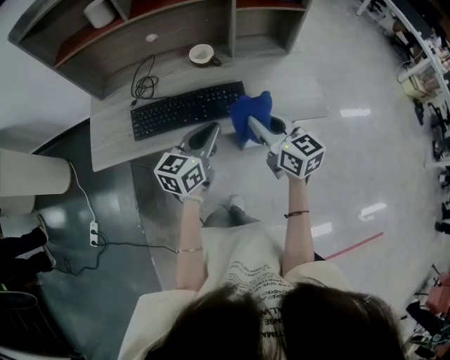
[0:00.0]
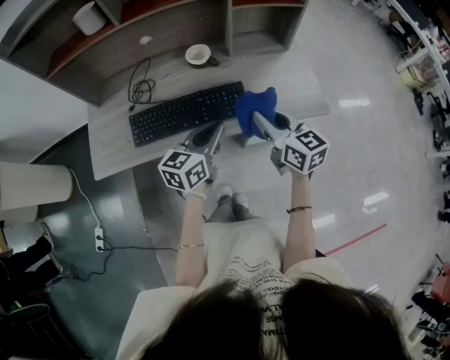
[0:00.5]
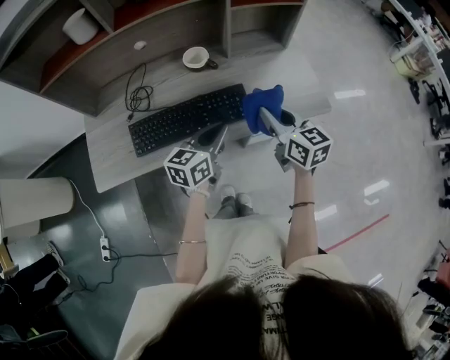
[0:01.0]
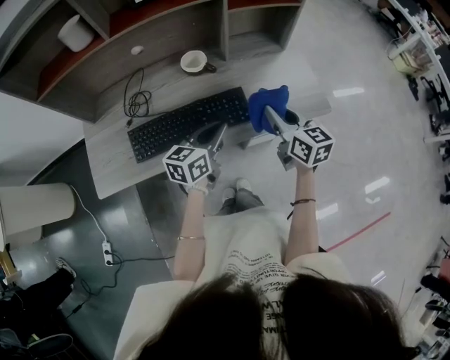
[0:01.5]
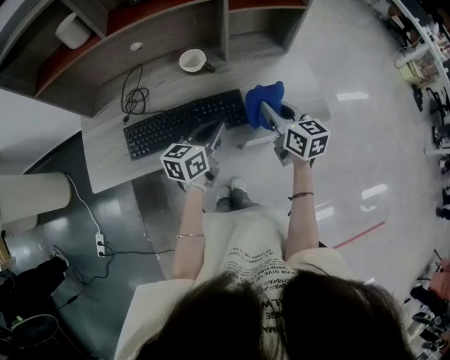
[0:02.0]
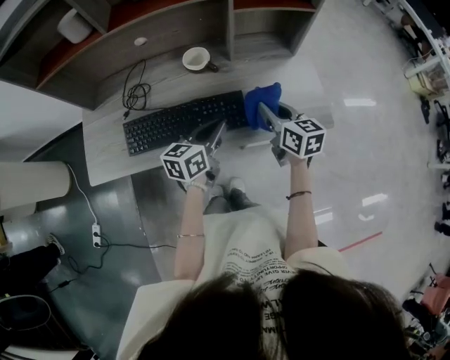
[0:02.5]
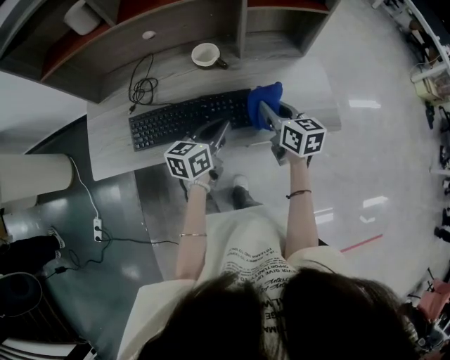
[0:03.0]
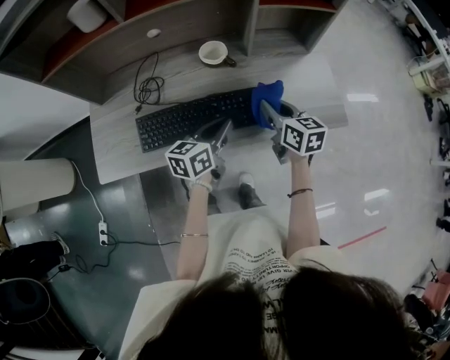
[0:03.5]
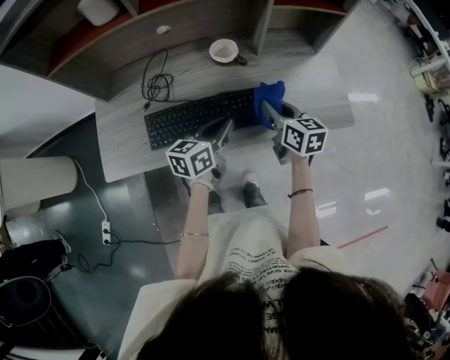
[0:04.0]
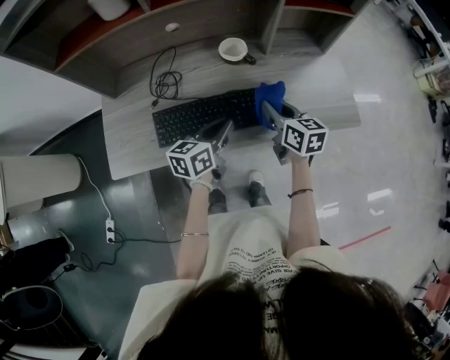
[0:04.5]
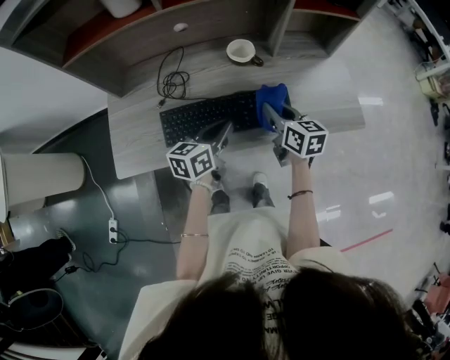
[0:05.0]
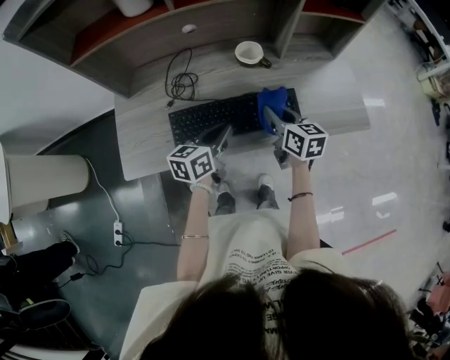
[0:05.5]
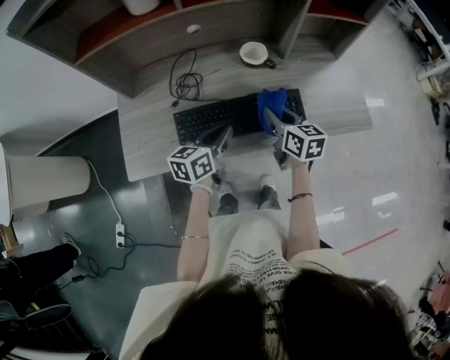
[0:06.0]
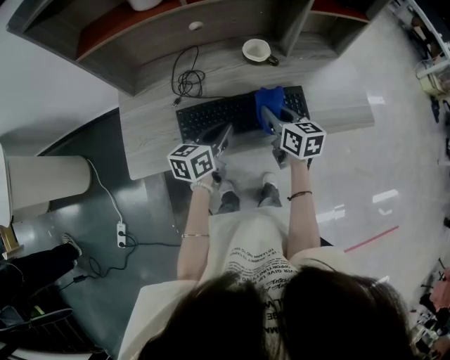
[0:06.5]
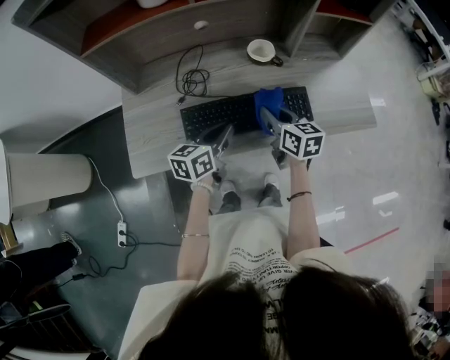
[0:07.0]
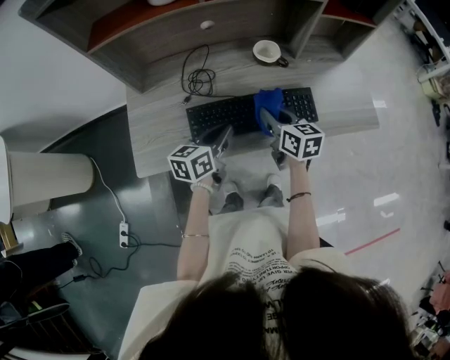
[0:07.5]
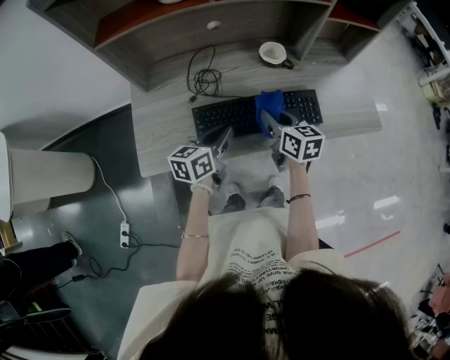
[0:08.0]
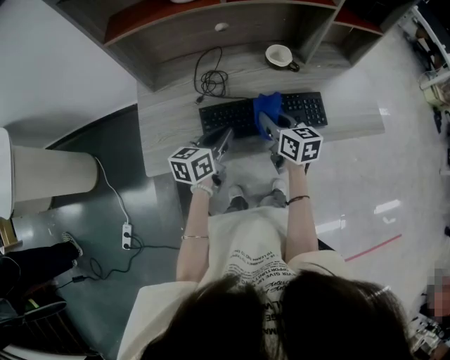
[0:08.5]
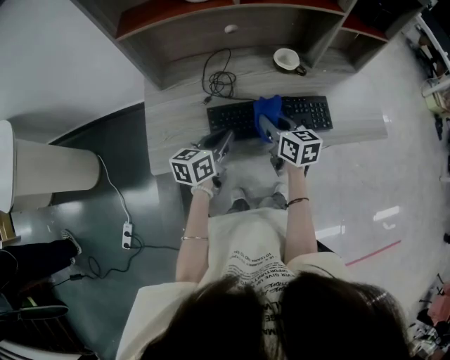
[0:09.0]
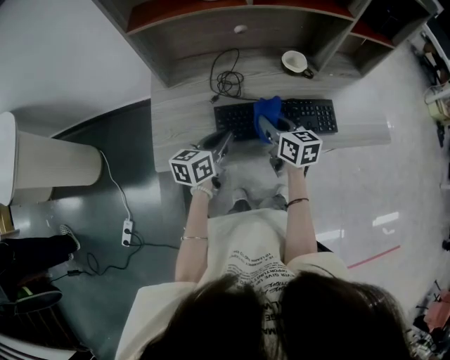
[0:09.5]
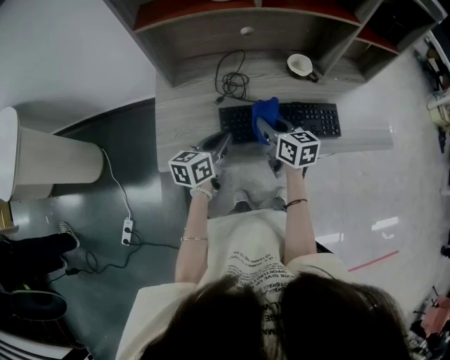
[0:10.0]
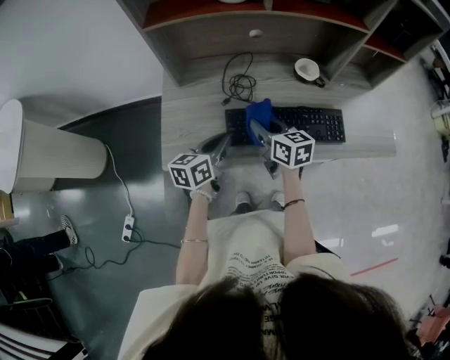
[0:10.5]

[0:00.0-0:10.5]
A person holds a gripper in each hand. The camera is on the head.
0:00.0 to 0:02.0: The right gripper goes roughly 10 cm forward, while the left gripper heads forward and downward, covering roughly 10 cm.
0:02.0 to 0:04.0: The grippers both shift to the left by about 10 cm.
0:04.0 to 0:06.5: Both grippers move to the left, approximately 10 cm.
0:06.5 to 0:08.5: Both grippers move to the left, some 5 cm.
0:08.5 to 0:10.5: Both grippers move to the left, approximately 10 cm.

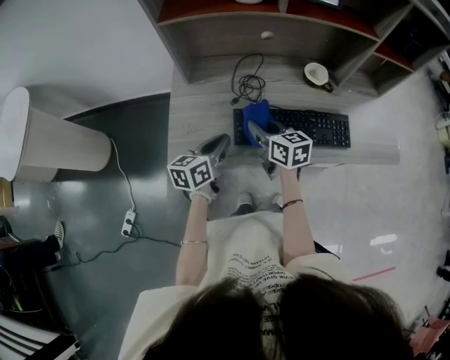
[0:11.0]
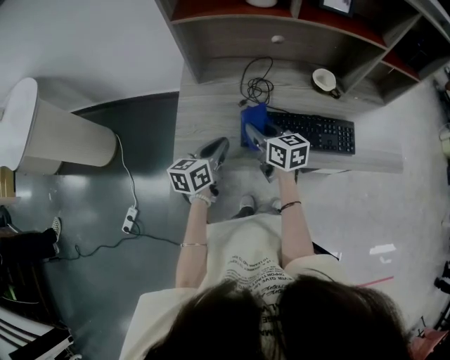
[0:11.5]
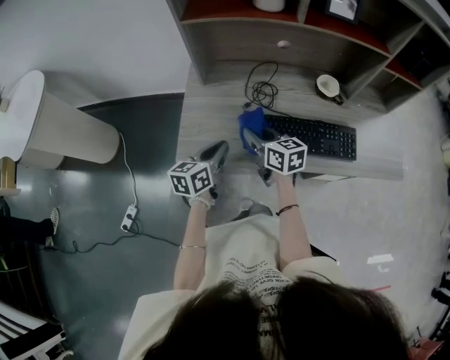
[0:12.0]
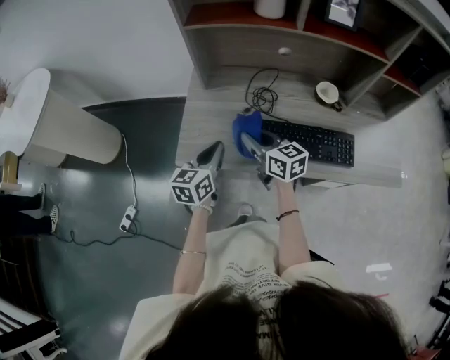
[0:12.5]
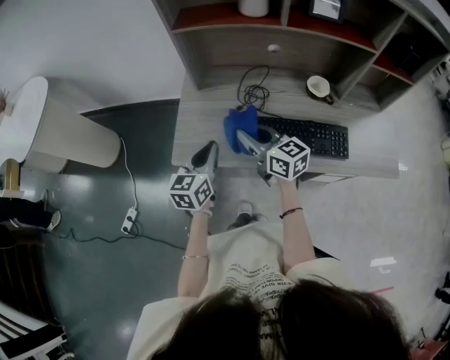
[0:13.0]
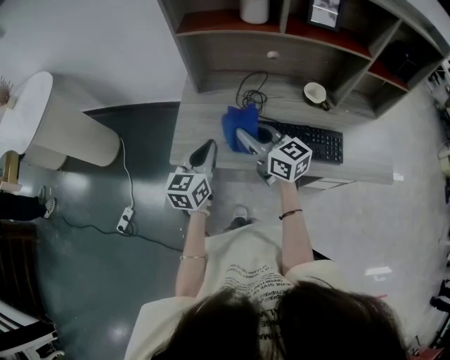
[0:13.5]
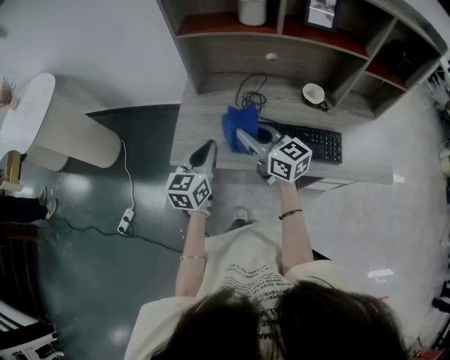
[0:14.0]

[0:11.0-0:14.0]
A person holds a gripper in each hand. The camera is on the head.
0:11.0 to 0:12.5: The right gripper heads to the left, covering about 5 cm; the left gripper changes place by some 5 cm.
0:12.5 to 0:14.0: The left gripper travels upward by about 5 cm. Meanwhile the right gripper is displaced upward by roughly 10 cm.

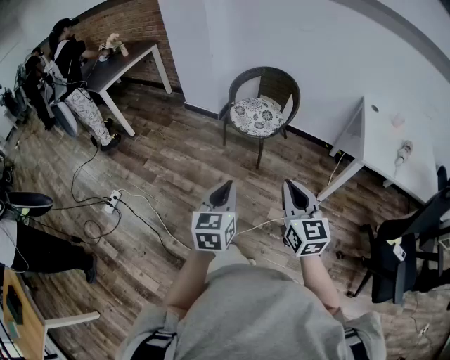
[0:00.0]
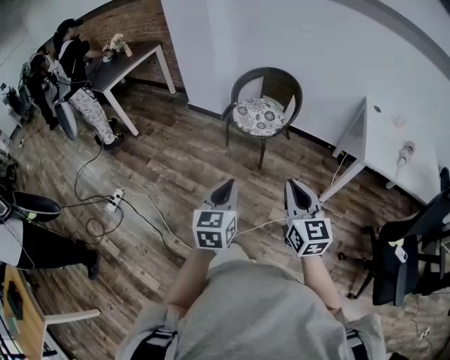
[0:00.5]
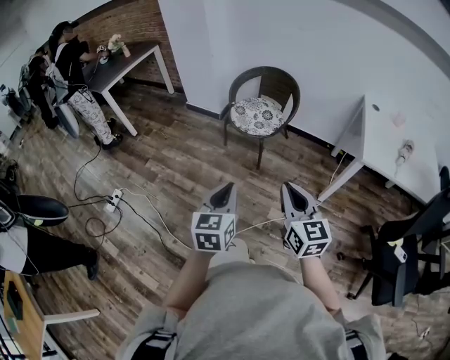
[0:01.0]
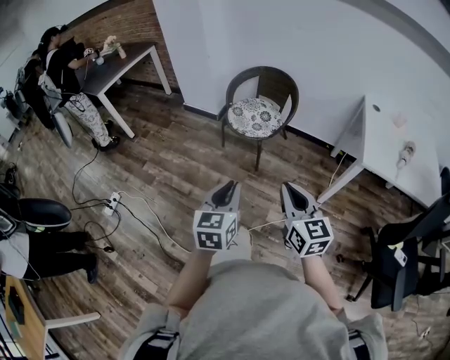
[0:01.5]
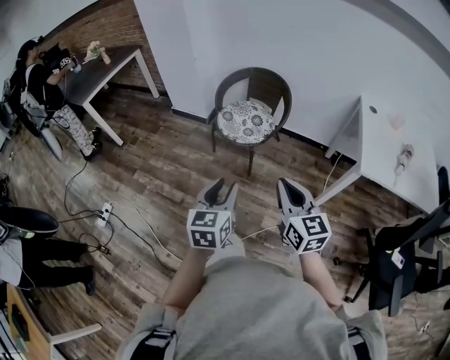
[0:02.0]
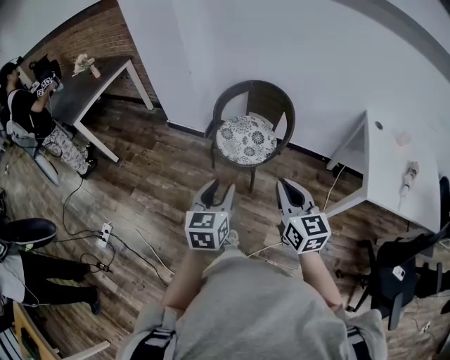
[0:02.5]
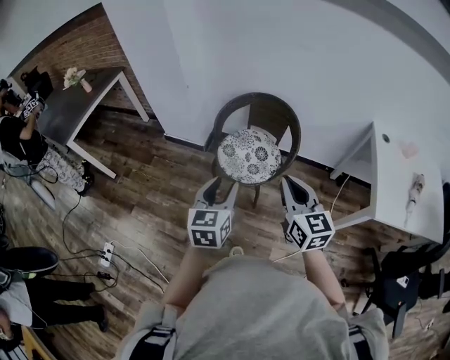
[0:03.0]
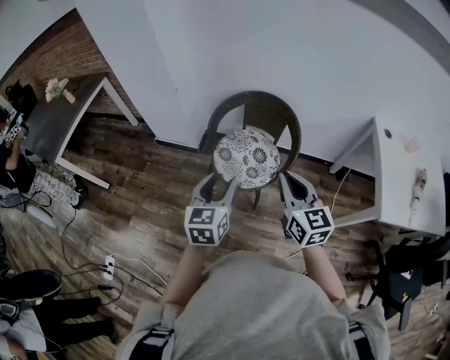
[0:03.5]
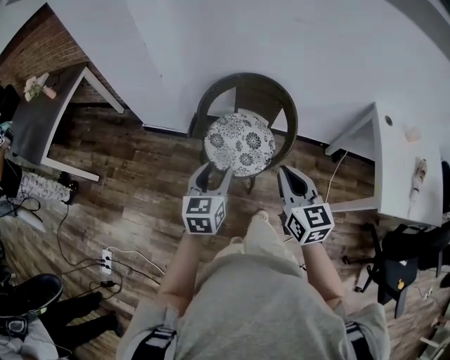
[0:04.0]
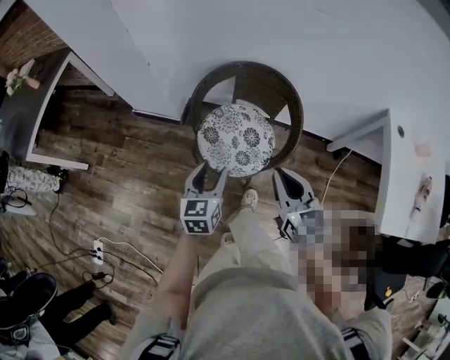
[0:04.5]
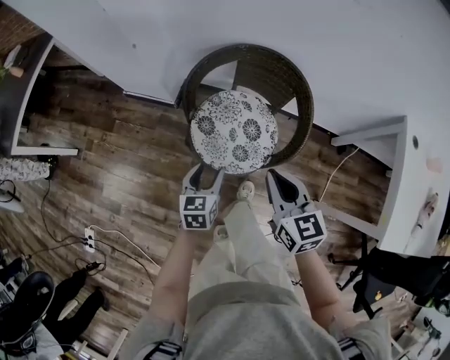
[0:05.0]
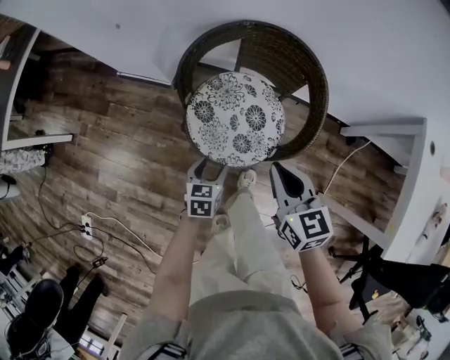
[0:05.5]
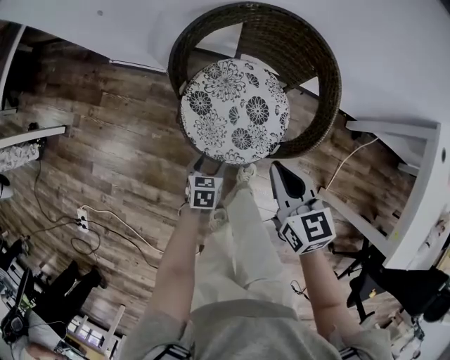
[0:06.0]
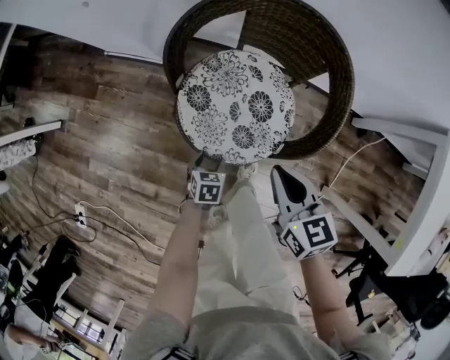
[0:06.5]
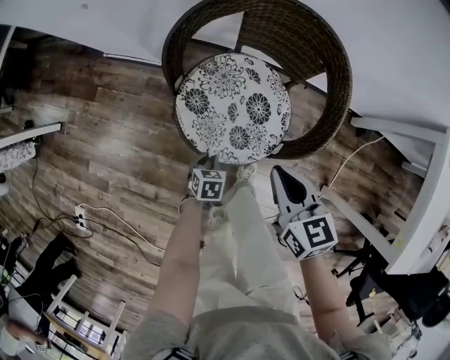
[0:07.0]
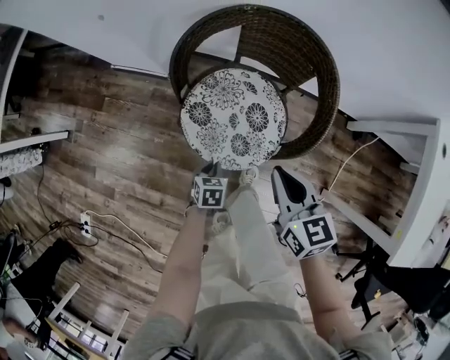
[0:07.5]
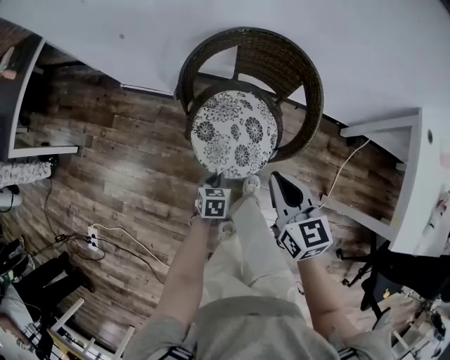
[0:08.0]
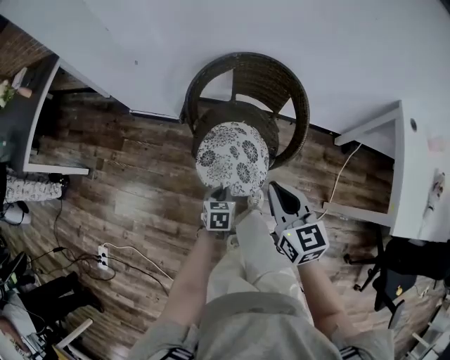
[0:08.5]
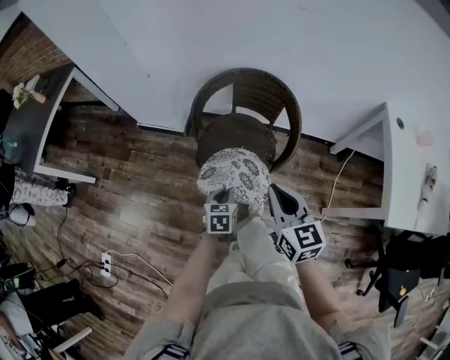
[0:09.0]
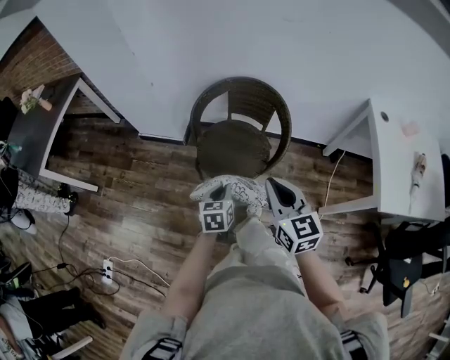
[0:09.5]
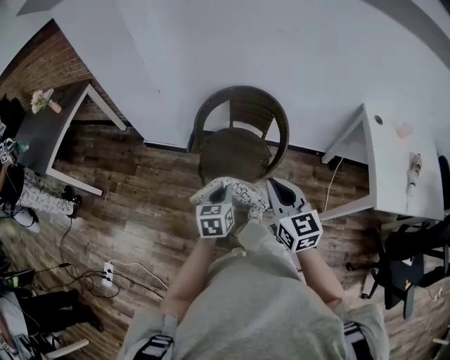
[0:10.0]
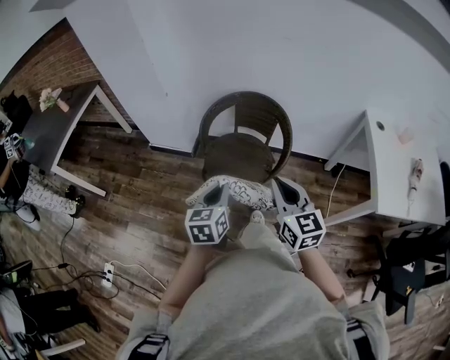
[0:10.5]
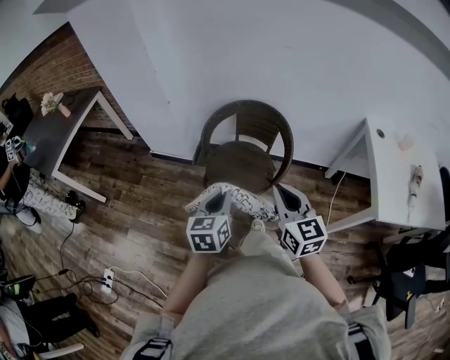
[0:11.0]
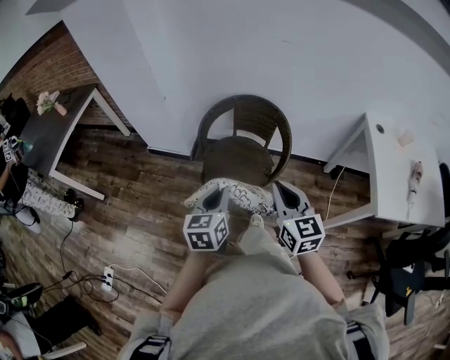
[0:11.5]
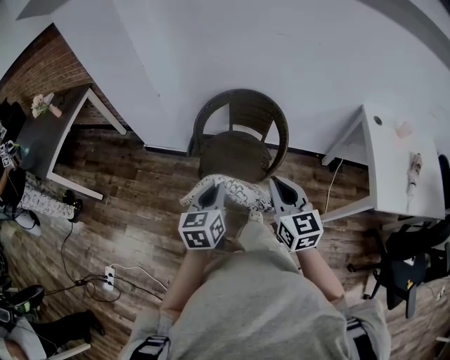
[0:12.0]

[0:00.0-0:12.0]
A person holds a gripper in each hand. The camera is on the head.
0:00.0 to 0:02.0: The right gripper goes about 10 cm forward, while the left gripper is displaced forward and to the right by some 15 cm, and opens its fingers.
0:02.0 to 0:04.0: The grippers both shift forward by about 40 cm.
0:04.0 to 0:06.0: The left gripper is displaced downward by some 40 cm, and tips its fingers downward by roughly 40 degrees. Meanwhile the right gripper is displaced downward and forward by some 30 cm, and turns by approximately 20 degrees.
0:06.0 to 0:08.0: The two grippers go roughly 5 cm upward. The left gripper closes.
0:08.0 to 0:10.0: The left gripper is displaced upward by some 30 cm, and rotates about 30 degrees, while the right gripper shifts roughly 25 cm upward and backward.
0:10.0 to 0:12.0: The left gripper is displaced upward by roughly 10 cm.

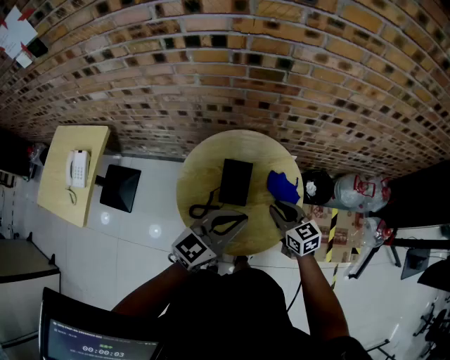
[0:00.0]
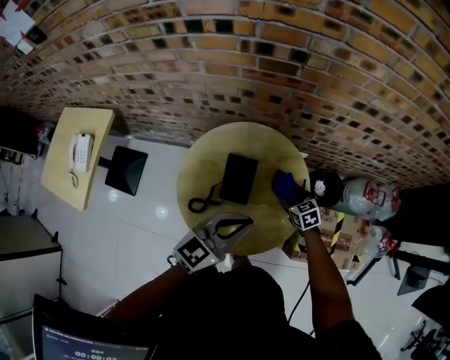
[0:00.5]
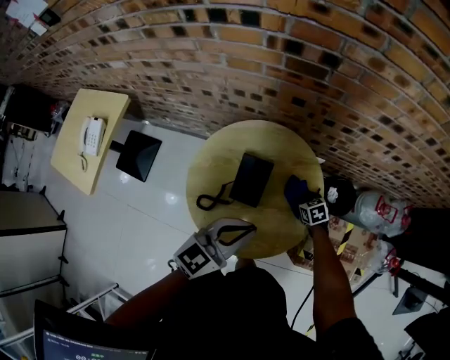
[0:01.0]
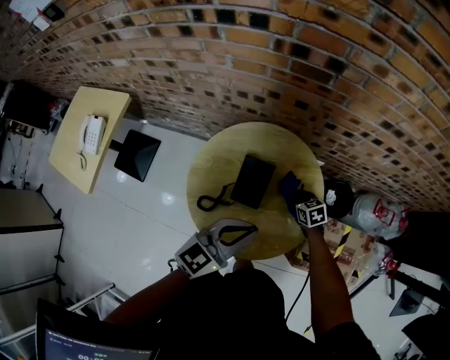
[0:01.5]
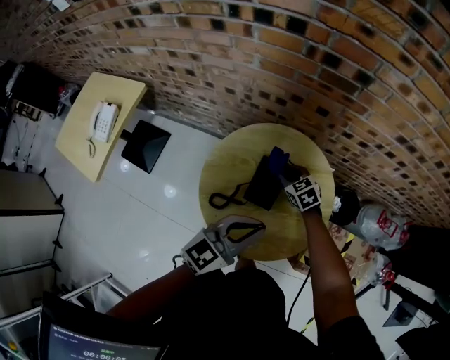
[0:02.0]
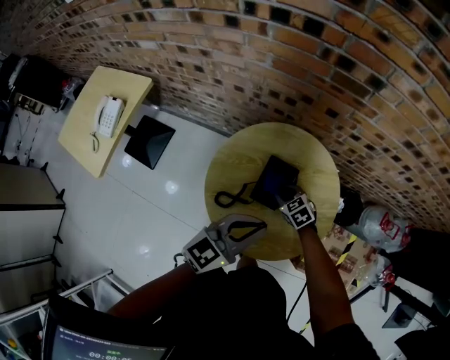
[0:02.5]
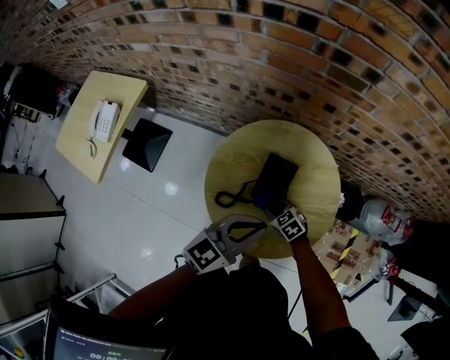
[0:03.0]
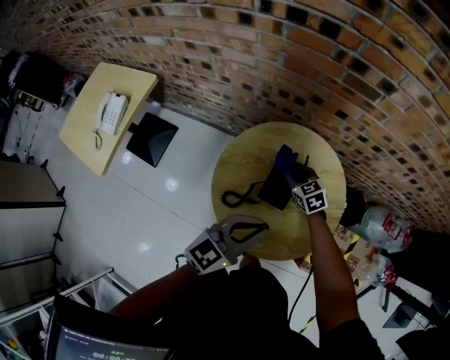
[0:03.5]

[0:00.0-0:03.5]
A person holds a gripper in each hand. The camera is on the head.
0:00.0 to 0:02.0: The left gripper ends up some 5 cm from where it was. Meanwhile the right gripper is displaced forward, downward and to the left by some 25 cm, swivels about 30 degrees, and opens and closes again.
0:02.0 to 0:03.5: The right gripper goes backward and returns, about 15 cm each way.
